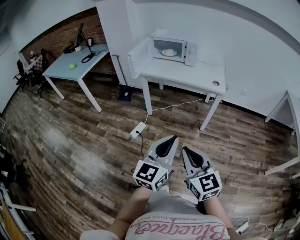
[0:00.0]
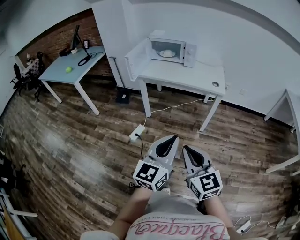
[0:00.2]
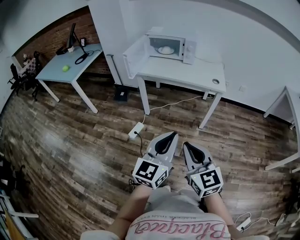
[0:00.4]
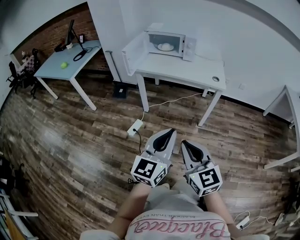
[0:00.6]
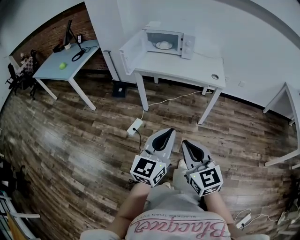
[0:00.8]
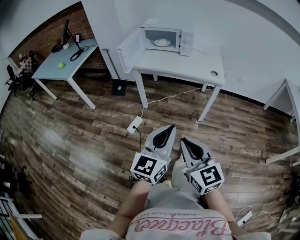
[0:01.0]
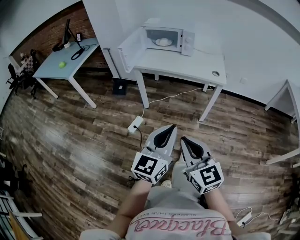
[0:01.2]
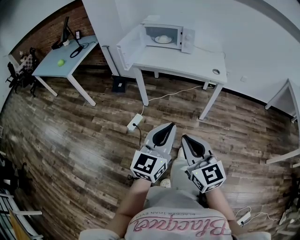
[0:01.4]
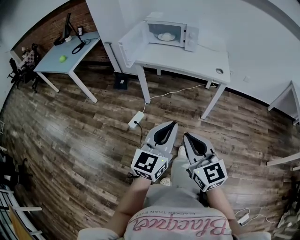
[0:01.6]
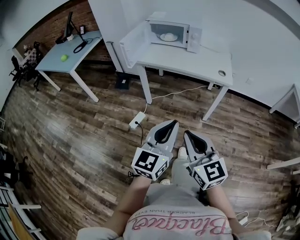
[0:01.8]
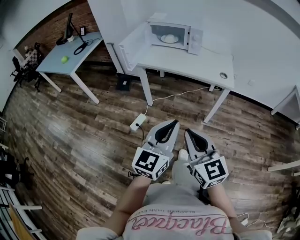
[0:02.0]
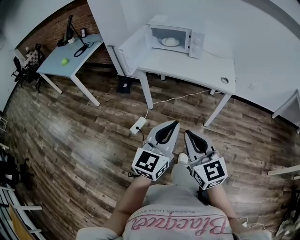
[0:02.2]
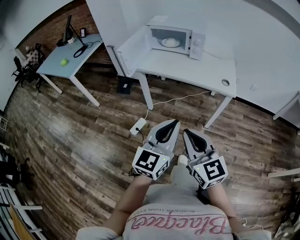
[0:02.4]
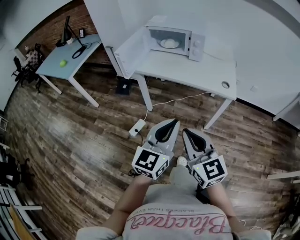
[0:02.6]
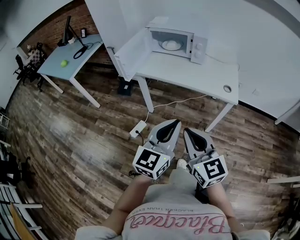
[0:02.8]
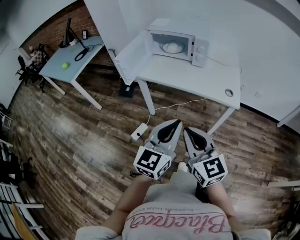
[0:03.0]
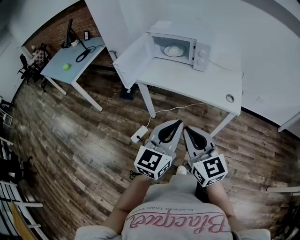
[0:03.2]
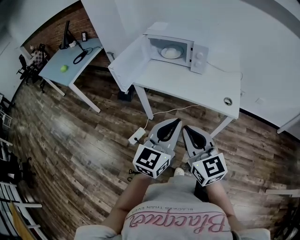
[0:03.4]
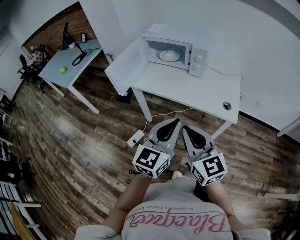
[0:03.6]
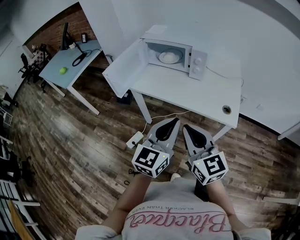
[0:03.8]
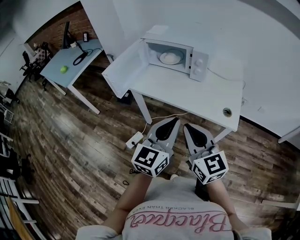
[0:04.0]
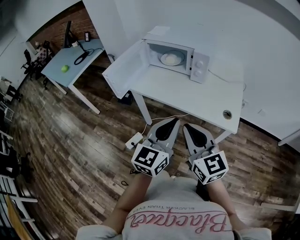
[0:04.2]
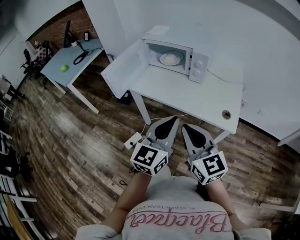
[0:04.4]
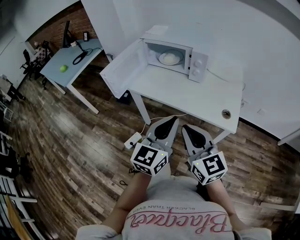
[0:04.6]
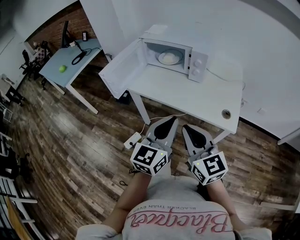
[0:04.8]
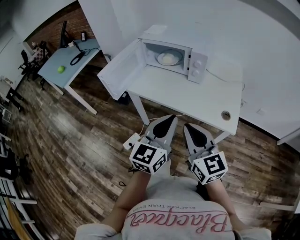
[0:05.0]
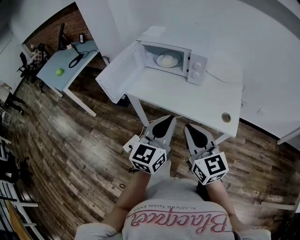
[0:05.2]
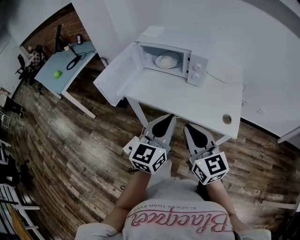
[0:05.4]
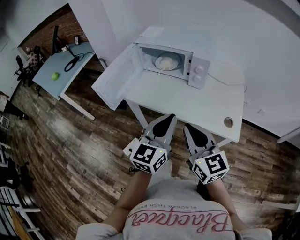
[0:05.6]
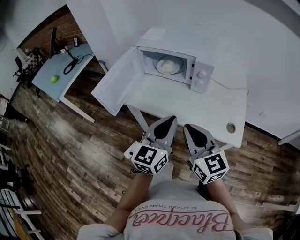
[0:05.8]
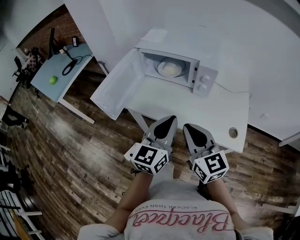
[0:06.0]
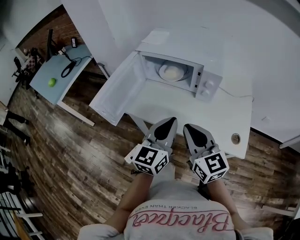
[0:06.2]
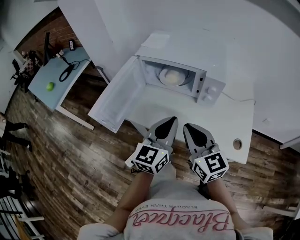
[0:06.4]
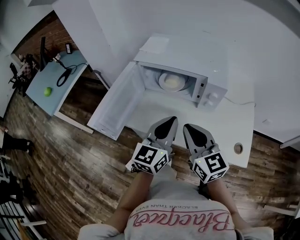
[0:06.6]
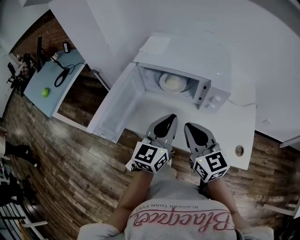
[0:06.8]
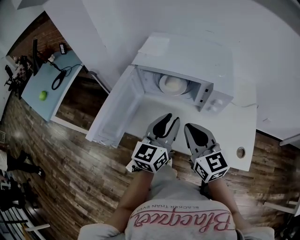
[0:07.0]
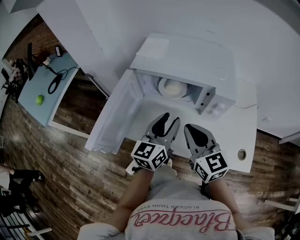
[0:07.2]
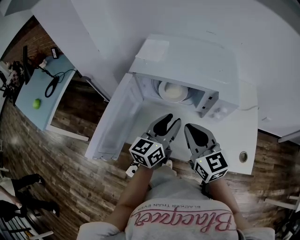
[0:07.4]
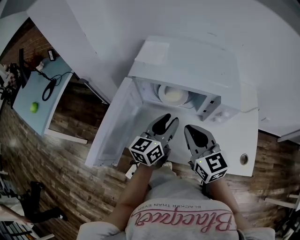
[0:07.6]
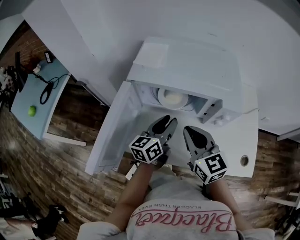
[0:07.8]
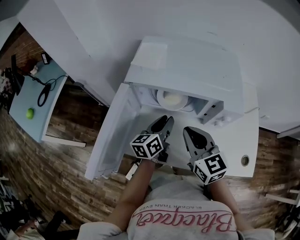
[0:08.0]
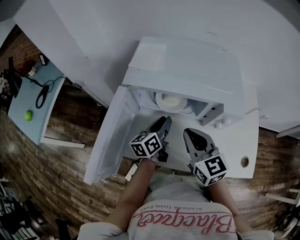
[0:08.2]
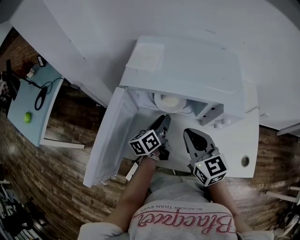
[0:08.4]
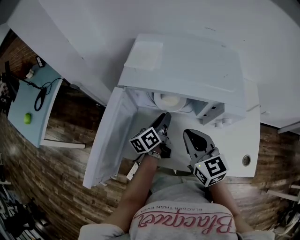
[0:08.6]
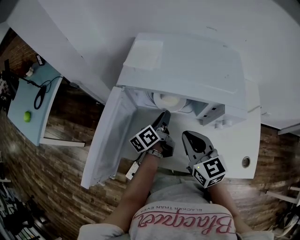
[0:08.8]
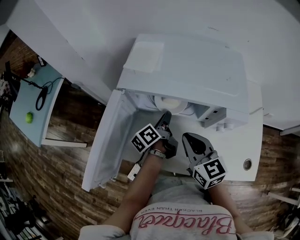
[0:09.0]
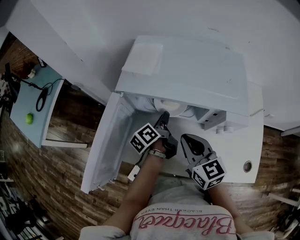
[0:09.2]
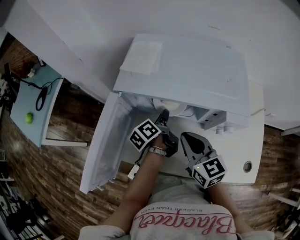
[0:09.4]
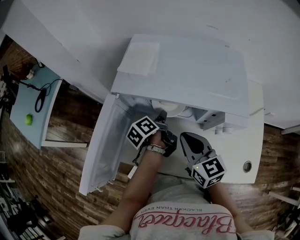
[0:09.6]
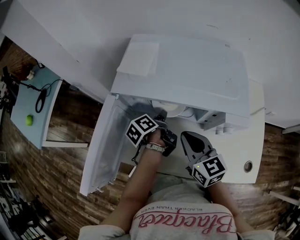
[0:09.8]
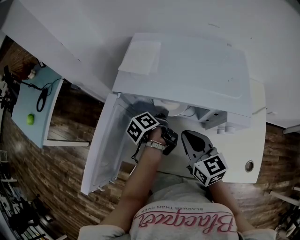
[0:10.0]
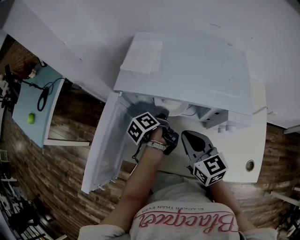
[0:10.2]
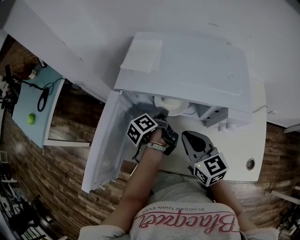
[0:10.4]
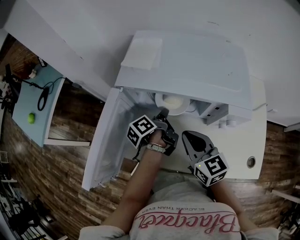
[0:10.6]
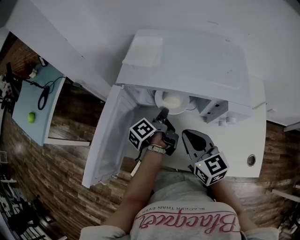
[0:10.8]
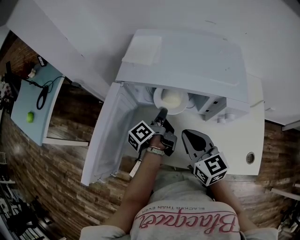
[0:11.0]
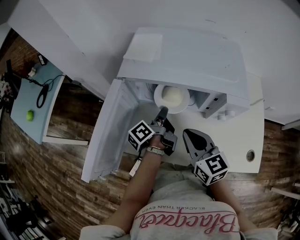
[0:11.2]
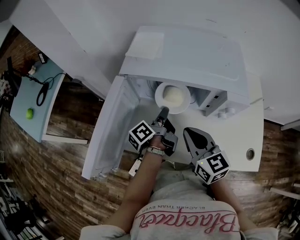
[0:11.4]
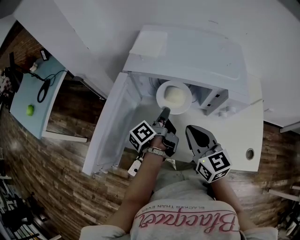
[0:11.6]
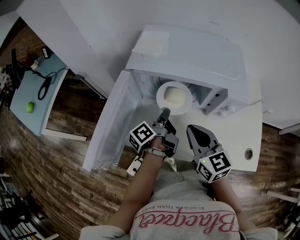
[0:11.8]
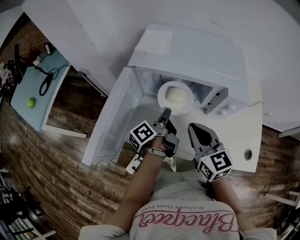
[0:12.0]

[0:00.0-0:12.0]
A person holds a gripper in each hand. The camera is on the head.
0:00.0 to 0:01.6: The two grippers go about 10 cm forward.
0:01.6 to 0:03.0: The two grippers go approximately 20 cm forward.
0:03.0 to 0:04.4: The grippers both shift forward and to the right by about 15 cm.
0:04.4 to 0:06.0: Both grippers travel together forward, about 15 cm.
0:06.0 to 0:07.6: Both grippers travel together forward, about 25 cm. The left gripper changes its angle by some 20 degrees, and opens its fingers.
0:07.6 to 0:09.0: The left gripper moves downward and forward, about 15 cm, and rolls counterclockwise, seen from behind, by about 50 degrees. Meanwhile the right gripper shifts some 5 cm downward.
0:09.0 to 0:10.4: The left gripper closes its fingers.
0:10.4 to 0:12.0: Both grippers travel together backward, some 5 cm. The left gripper swivels some 20 degrees.

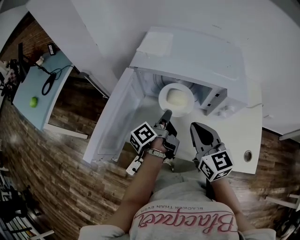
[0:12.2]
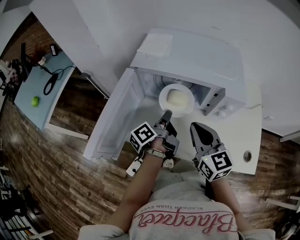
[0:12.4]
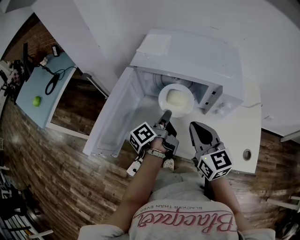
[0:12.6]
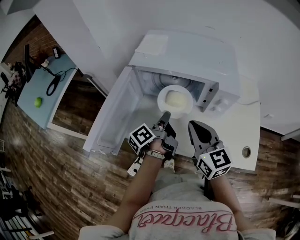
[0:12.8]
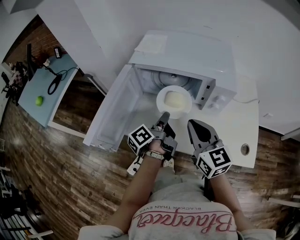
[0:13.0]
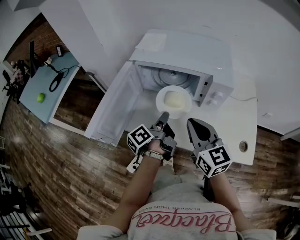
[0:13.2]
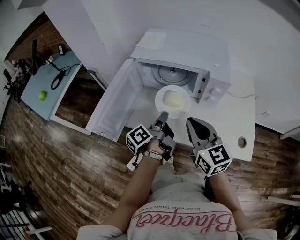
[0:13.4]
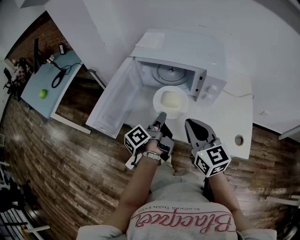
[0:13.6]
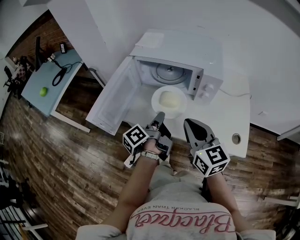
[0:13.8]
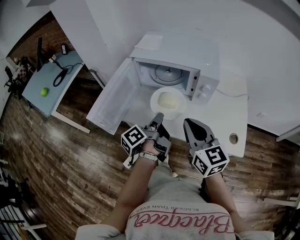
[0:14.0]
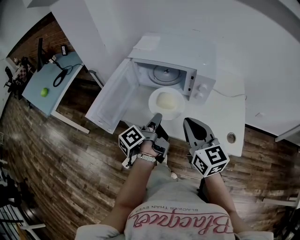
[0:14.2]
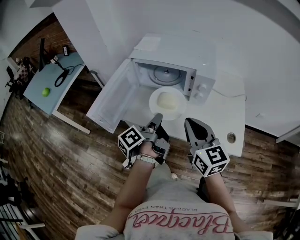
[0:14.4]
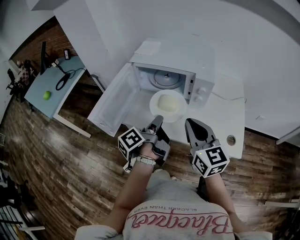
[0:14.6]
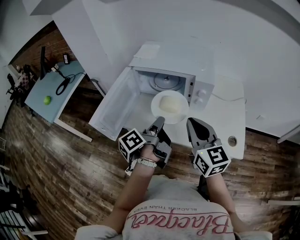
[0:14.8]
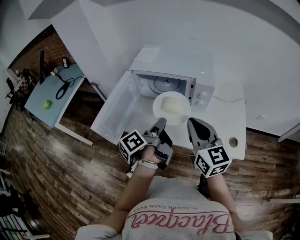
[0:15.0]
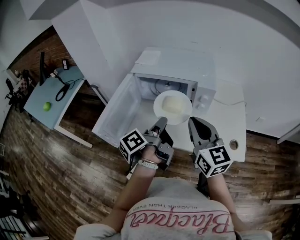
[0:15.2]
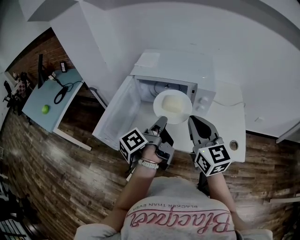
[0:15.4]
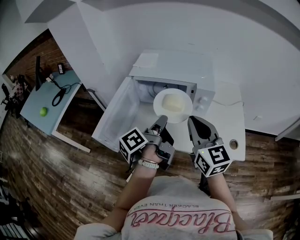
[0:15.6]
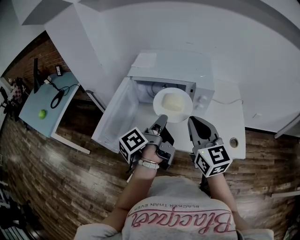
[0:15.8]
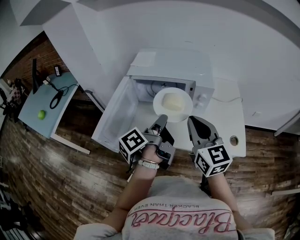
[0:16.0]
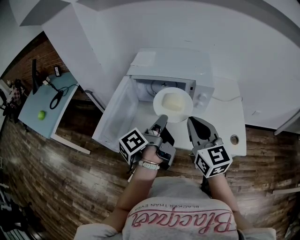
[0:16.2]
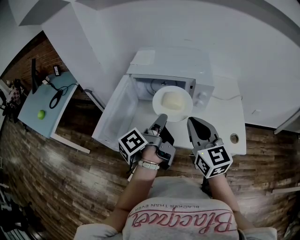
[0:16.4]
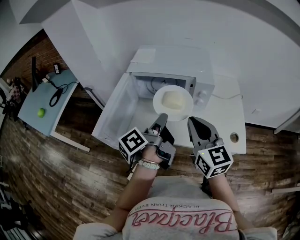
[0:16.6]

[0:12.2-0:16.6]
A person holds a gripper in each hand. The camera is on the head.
0:12.2 to 0:13.6: The two grippers go about 10 cm backward.
0:13.6 to 0:15.2: The two grippers go about 10 cm upward.
0:15.2 to 0:16.6: The grippers make only small movements.

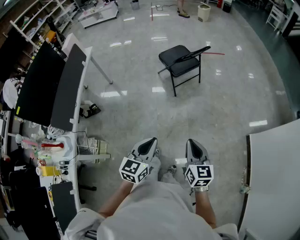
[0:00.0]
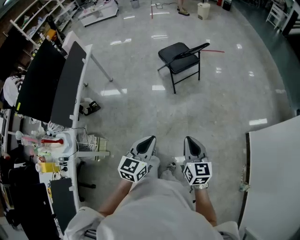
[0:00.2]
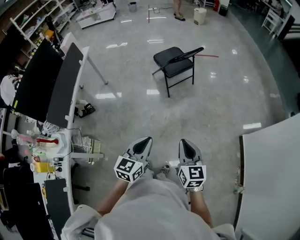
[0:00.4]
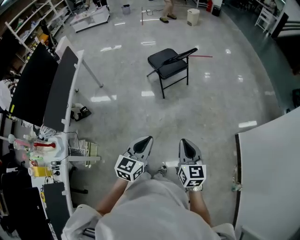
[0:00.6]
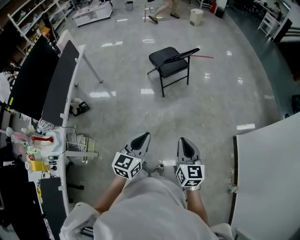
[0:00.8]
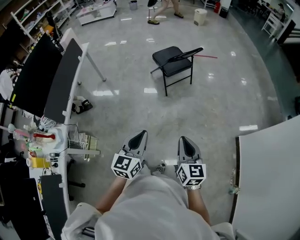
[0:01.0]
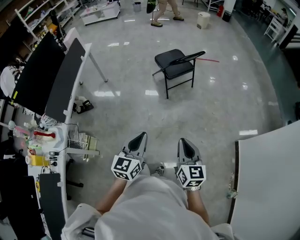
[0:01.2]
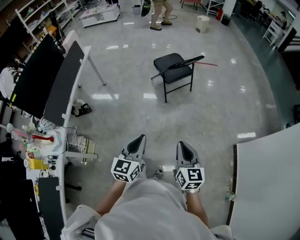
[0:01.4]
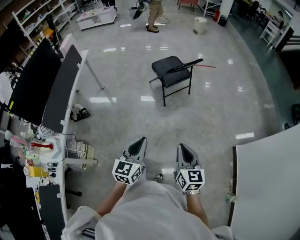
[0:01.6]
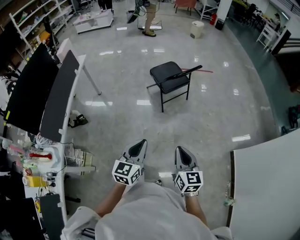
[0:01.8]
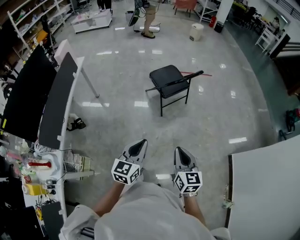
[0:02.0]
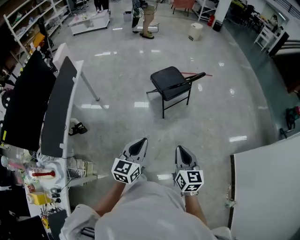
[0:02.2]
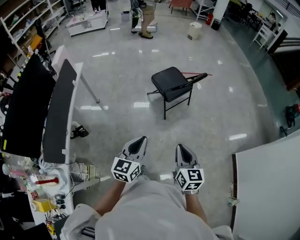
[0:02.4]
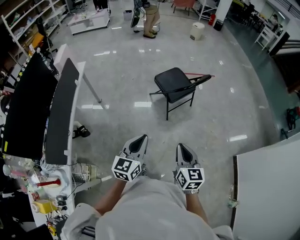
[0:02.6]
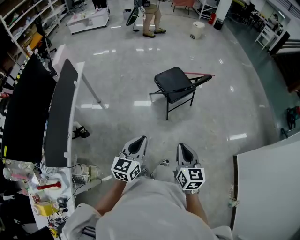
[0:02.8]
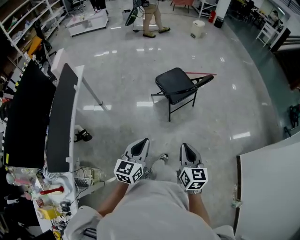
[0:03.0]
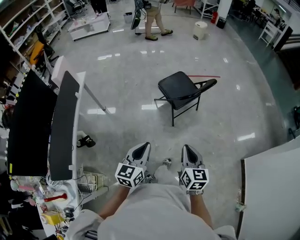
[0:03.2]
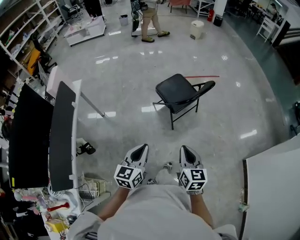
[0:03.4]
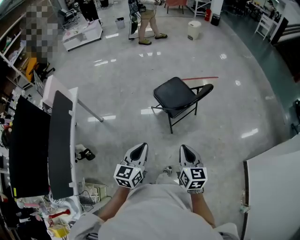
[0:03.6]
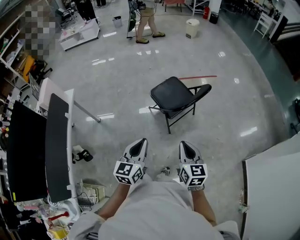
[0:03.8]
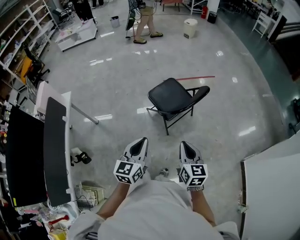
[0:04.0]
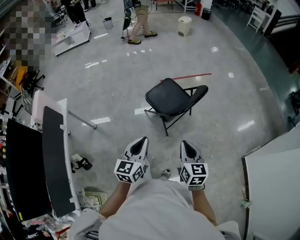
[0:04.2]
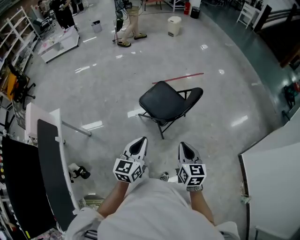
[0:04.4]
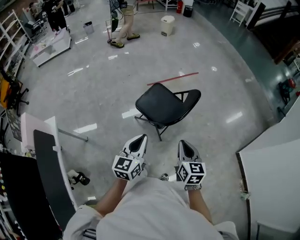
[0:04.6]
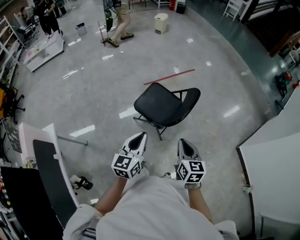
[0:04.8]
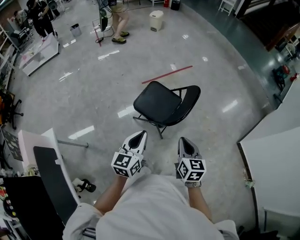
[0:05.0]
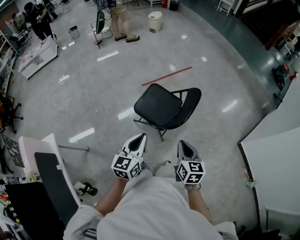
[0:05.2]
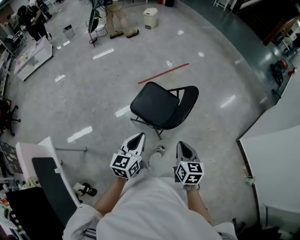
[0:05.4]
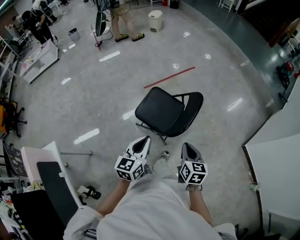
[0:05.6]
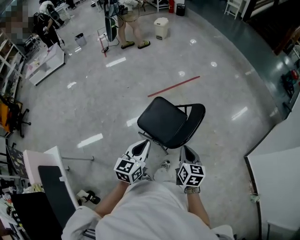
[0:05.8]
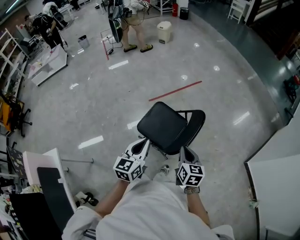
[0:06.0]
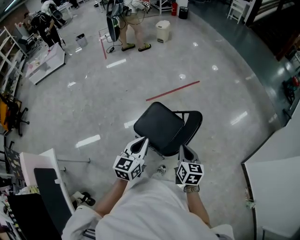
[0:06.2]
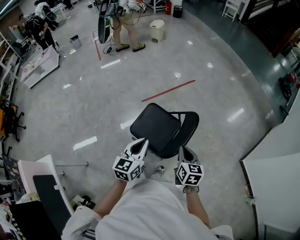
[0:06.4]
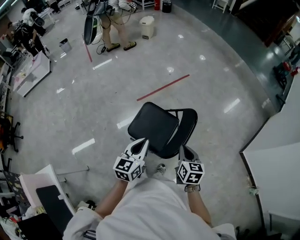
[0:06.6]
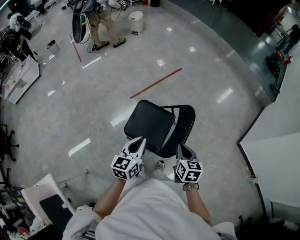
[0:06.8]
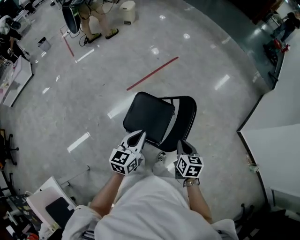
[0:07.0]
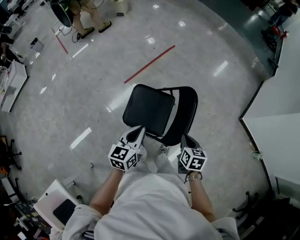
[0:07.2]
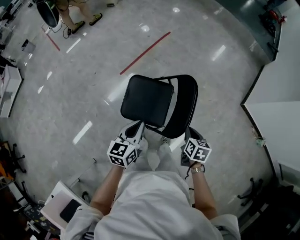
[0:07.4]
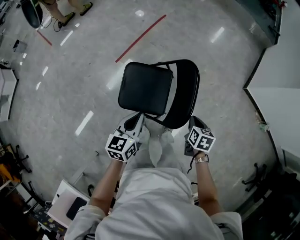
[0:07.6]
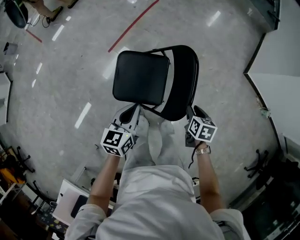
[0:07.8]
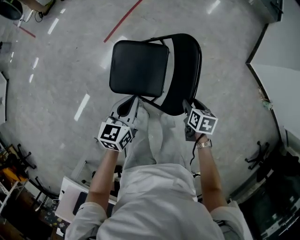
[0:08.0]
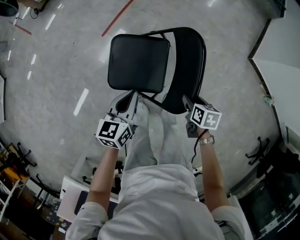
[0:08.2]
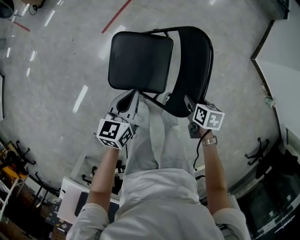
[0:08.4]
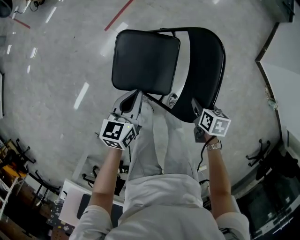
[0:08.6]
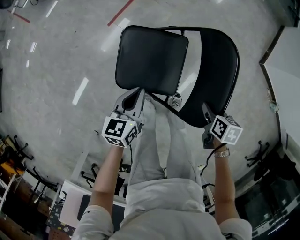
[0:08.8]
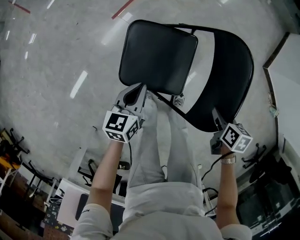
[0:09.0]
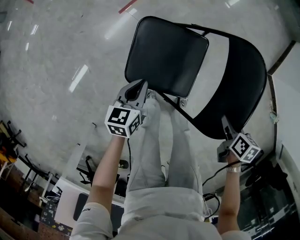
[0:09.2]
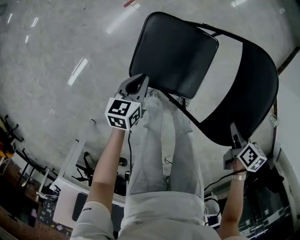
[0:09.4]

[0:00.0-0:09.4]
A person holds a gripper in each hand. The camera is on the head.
0:00.0 to 0:01.6: There are only small adjustments of the grippers.
0:01.6 to 0:03.2: The grippers both shift forward and to the left by some 30 cm.
0:03.2 to 0:04.8: Both grippers travel together forward, approximately 35 cm.
0:04.8 to 0:06.2: The two grippers go roughly 20 cm forward.
0:06.2 to 0:07.8: Both grippers travel together downward, some 20 cm. The right gripper tilts its fingers approximately 30 degrees downward, and opens its fingers. The left gripper rotates some 30 degrees.
0:07.8 to 0:09.4: The left gripper goes approximately 35 cm downward and to the left; the right gripper is displaced downward by roughly 10 cm.
